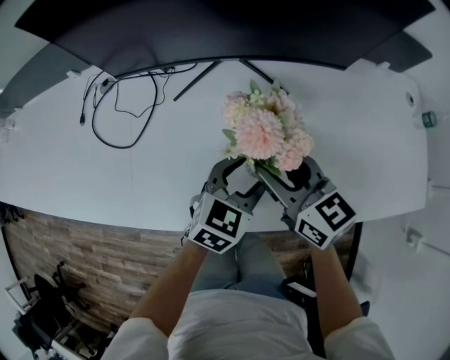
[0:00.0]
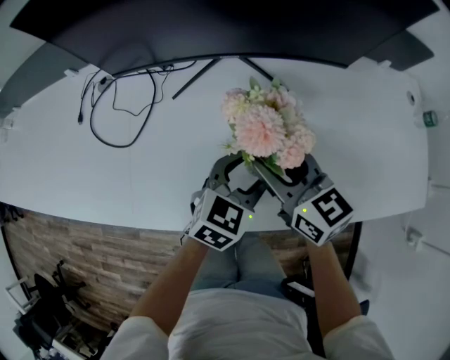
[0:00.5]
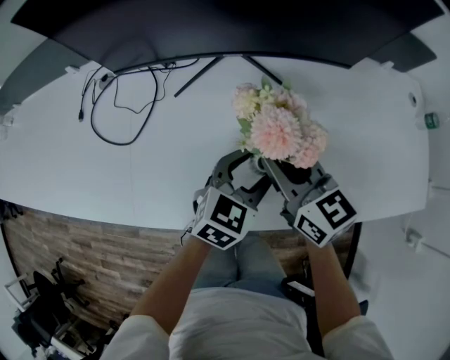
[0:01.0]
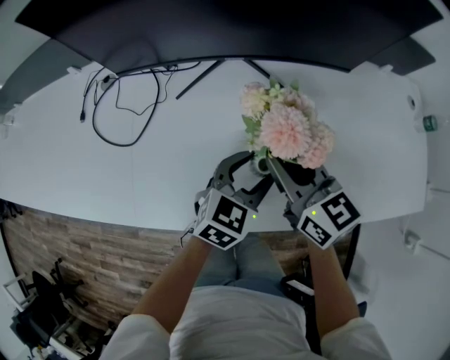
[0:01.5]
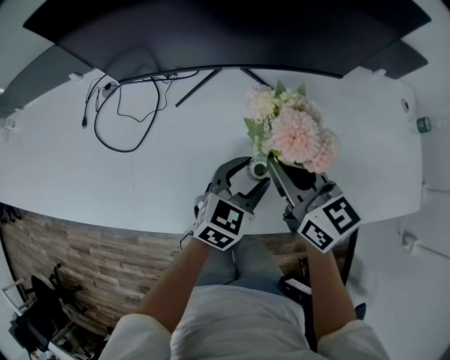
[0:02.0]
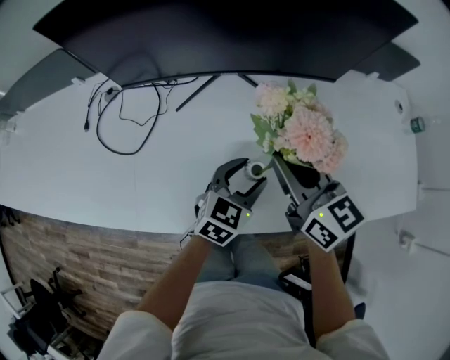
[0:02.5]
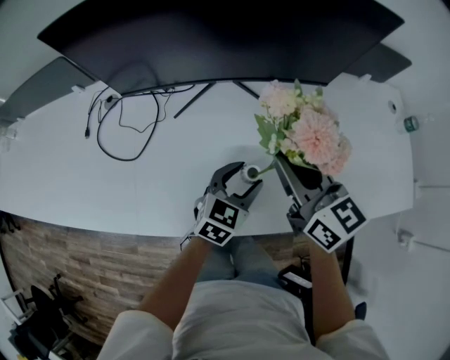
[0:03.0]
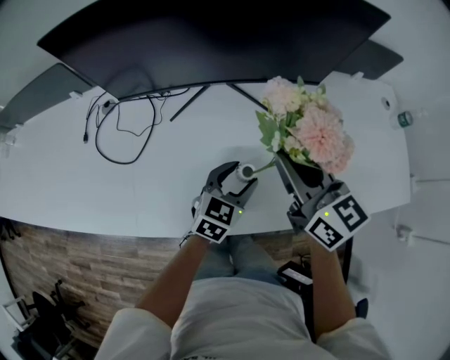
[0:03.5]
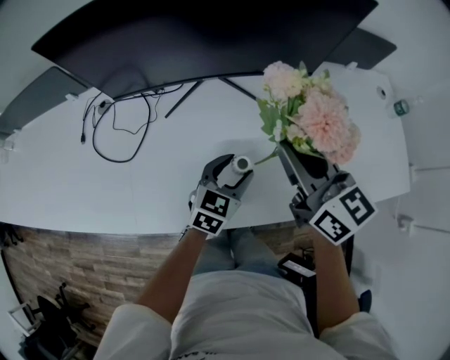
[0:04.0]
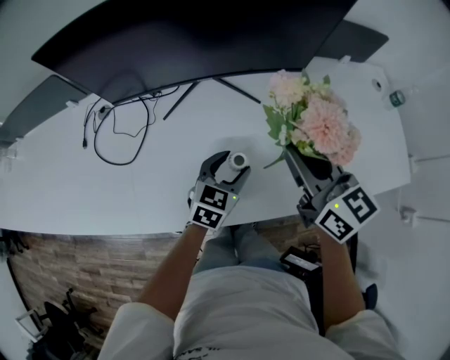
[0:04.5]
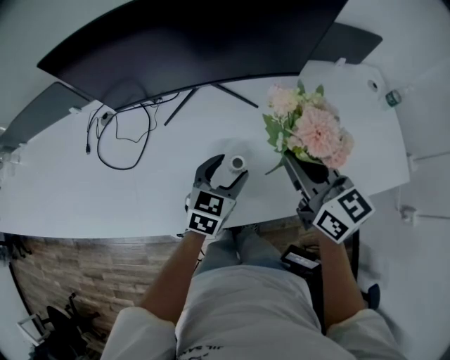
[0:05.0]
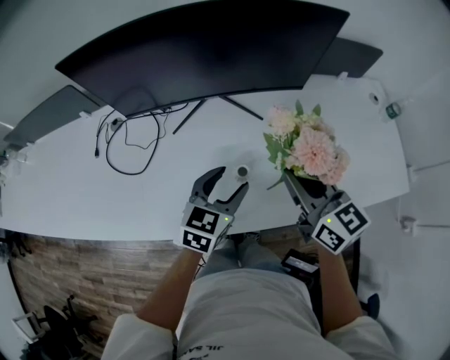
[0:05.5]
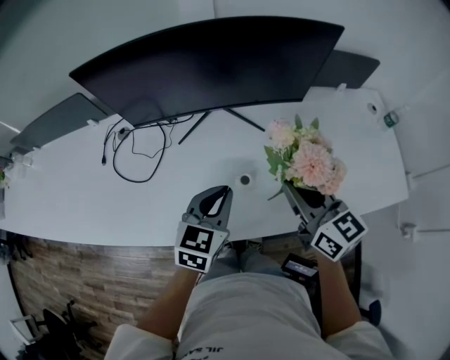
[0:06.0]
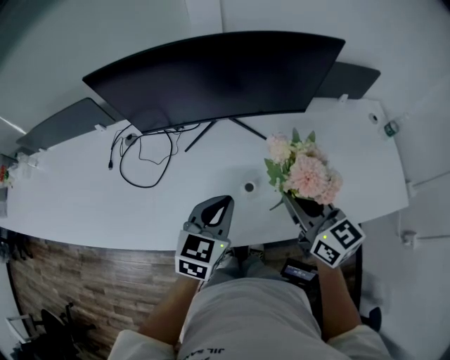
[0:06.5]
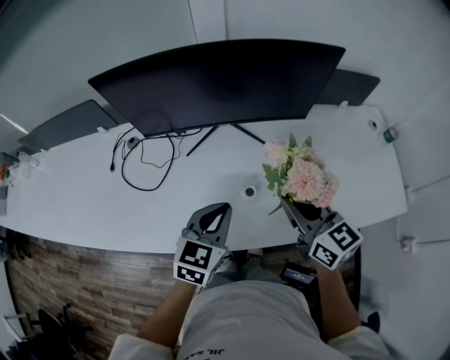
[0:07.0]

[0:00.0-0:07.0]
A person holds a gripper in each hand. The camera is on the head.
0:00.0 to 0:02.0: The right gripper closes its fingers.
0:02.0 to 0:03.5: The right gripper shifts some 5 cm upward.
0:03.5 to 0:05.0: The right gripper is displaced to the right by some 5 cm.
0:05.0 to 0:07.0: The left gripper is displaced upward, to the left and backward by about 15 cm, and closes up.

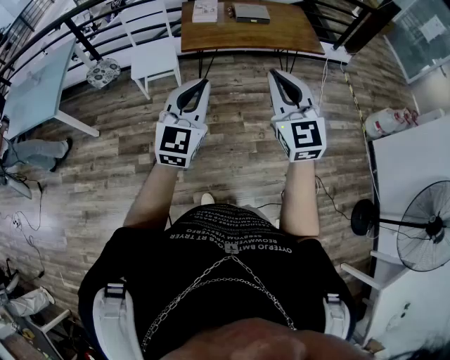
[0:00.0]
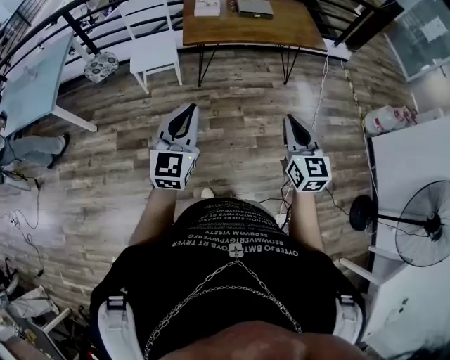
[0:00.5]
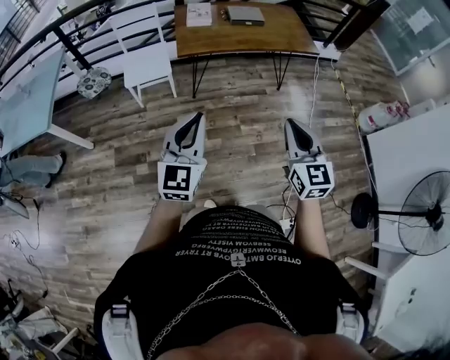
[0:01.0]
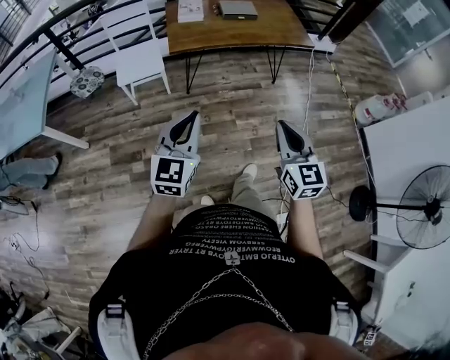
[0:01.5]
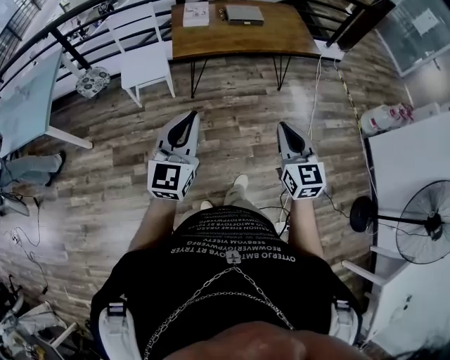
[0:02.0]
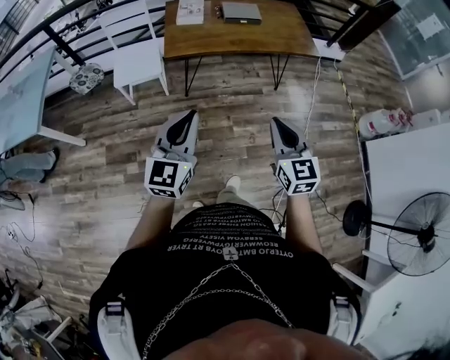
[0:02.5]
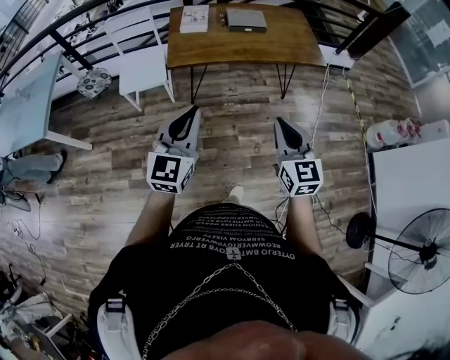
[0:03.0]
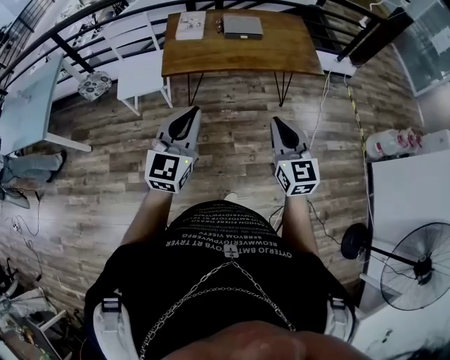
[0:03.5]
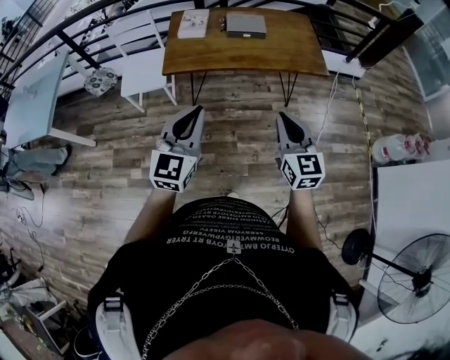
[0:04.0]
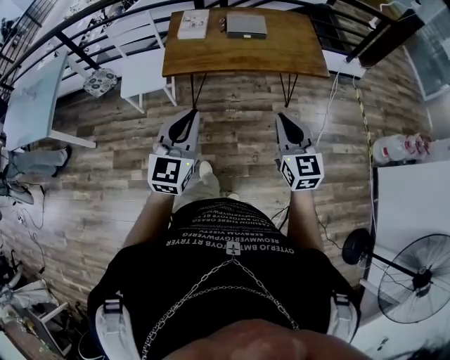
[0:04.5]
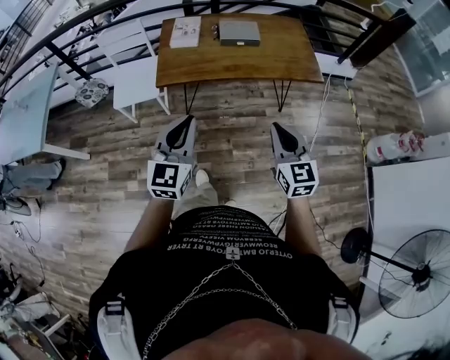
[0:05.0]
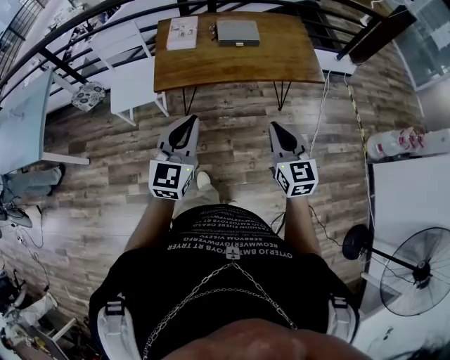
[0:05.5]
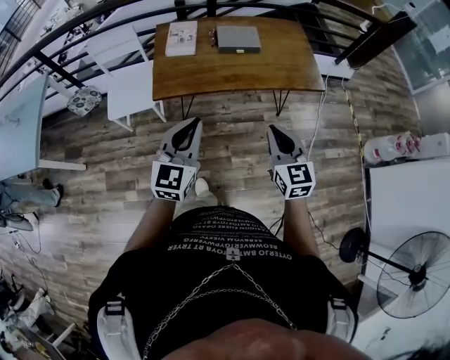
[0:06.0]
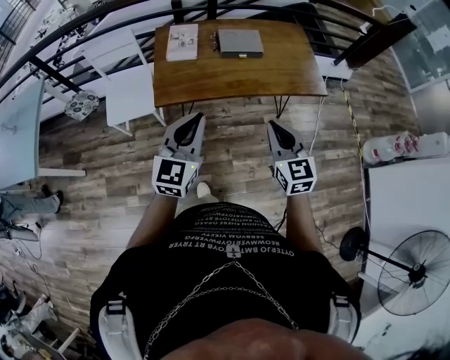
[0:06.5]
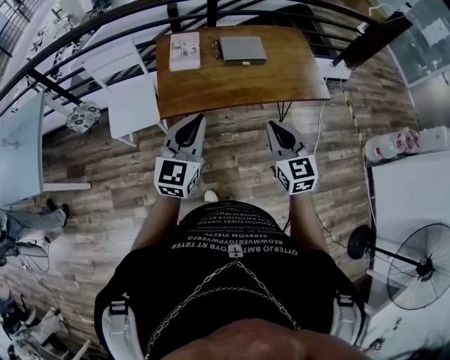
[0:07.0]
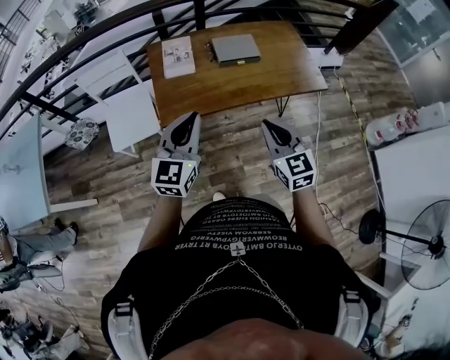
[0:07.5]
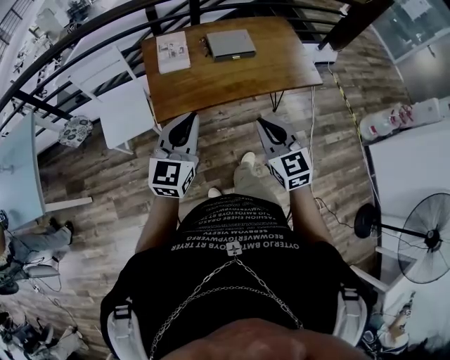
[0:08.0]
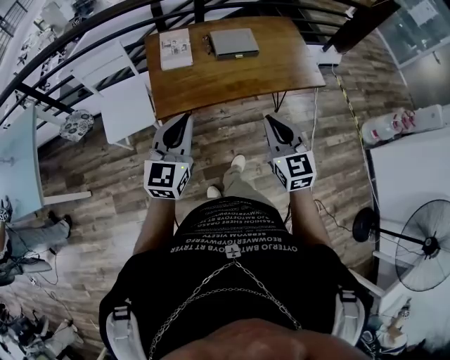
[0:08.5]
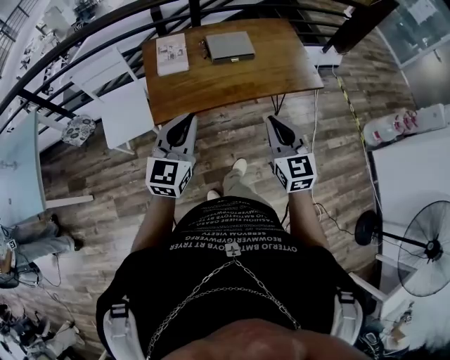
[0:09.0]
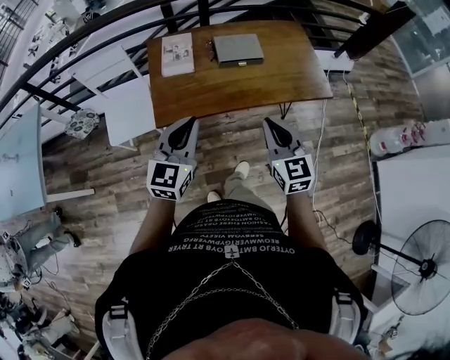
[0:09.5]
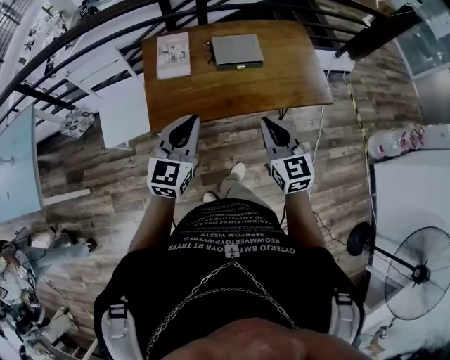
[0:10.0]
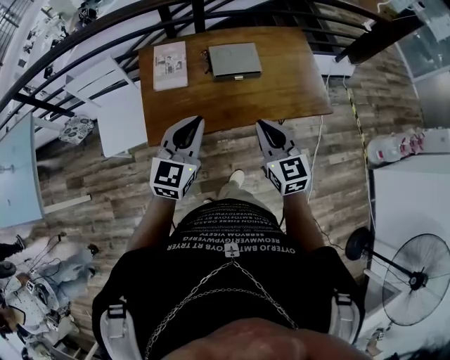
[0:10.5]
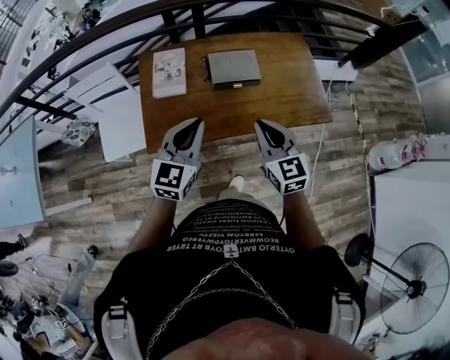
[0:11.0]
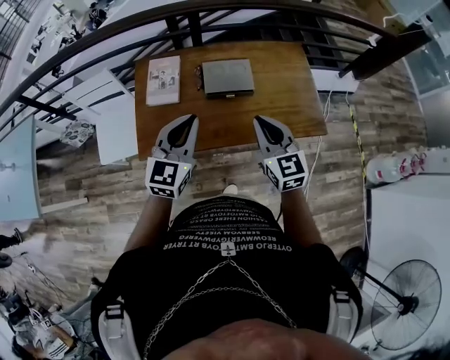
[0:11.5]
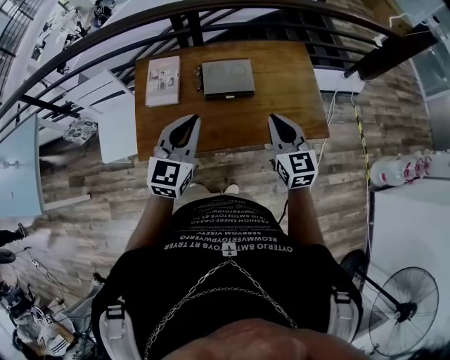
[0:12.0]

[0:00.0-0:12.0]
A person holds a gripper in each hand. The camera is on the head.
0:00.0 to 0:02.0: The left gripper ends up about 5 cm from where it was. Meanwhile the right gripper shifts approximately 15 cm downward, and swivels about 20 degrees.
0:02.0 to 0:04.0: Both grippers travel together forward and to the right, approximately 30 cm.
0:04.0 to 0:06.0: The left gripper shifts approximately 15 cm forward. The right gripper travels forward and to the left by about 15 cm.
0:06.0 to 0:08.0: Both grippers travel together to the left and forward, approximately 15 cm.
0:08.0 to 0:10.0: The right gripper travels forward and to the right by some 15 cm; the left gripper goes approximately 15 cm forward.
0:10.0 to 0:12.0: Both grippers move forward and to the right, roughly 20 cm.

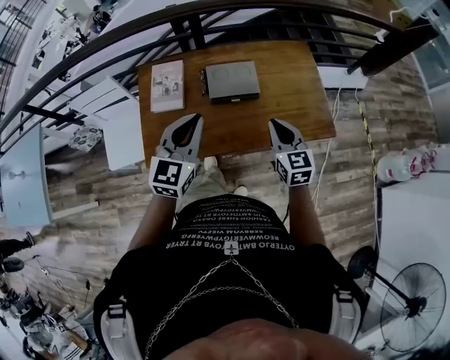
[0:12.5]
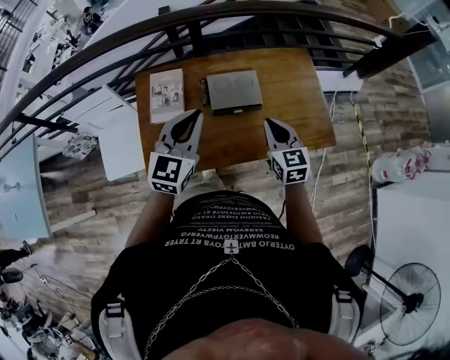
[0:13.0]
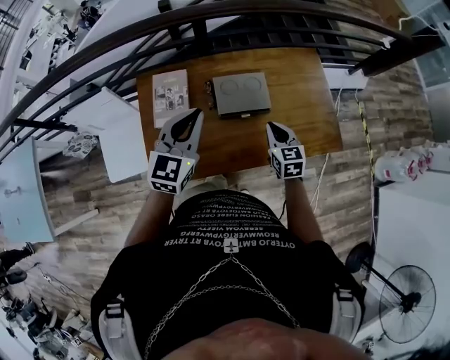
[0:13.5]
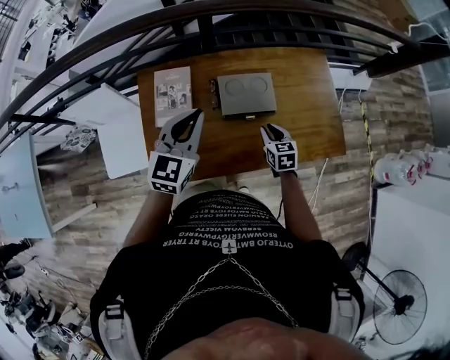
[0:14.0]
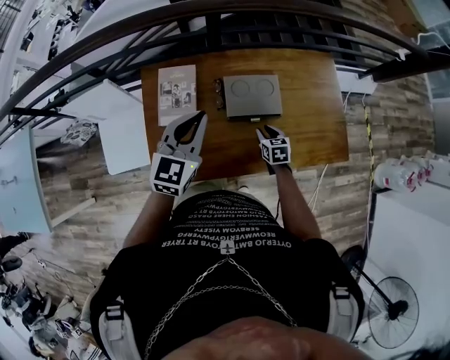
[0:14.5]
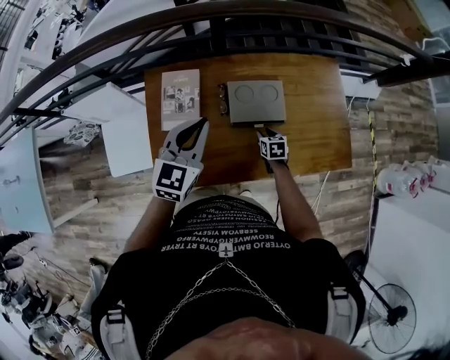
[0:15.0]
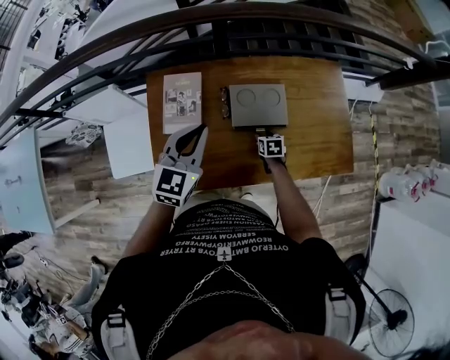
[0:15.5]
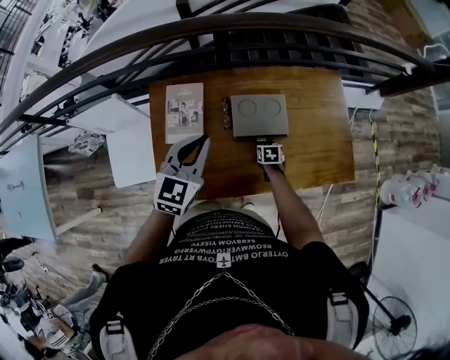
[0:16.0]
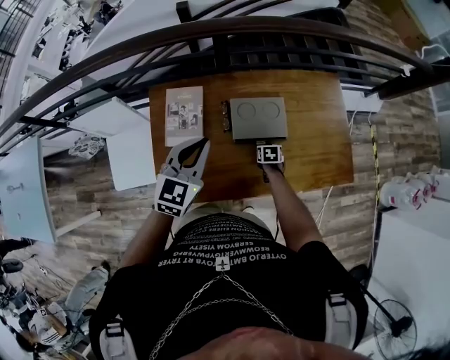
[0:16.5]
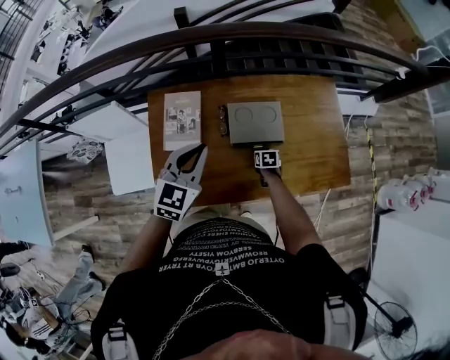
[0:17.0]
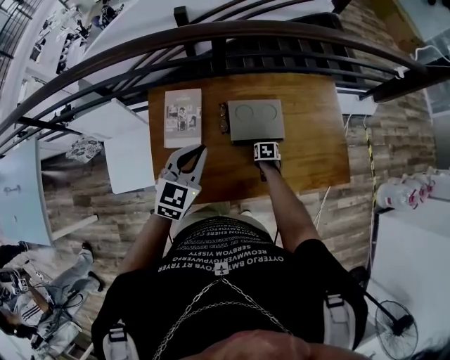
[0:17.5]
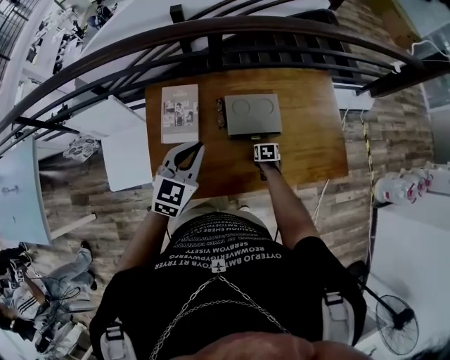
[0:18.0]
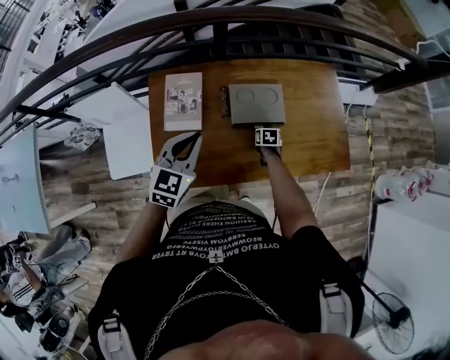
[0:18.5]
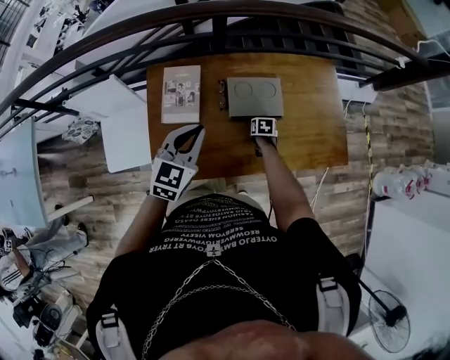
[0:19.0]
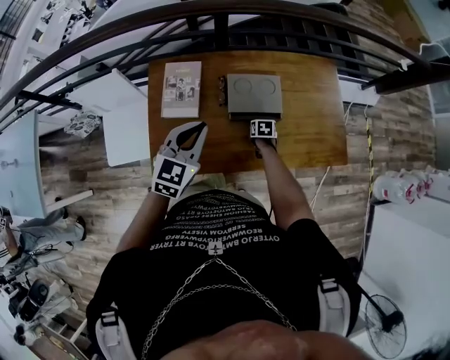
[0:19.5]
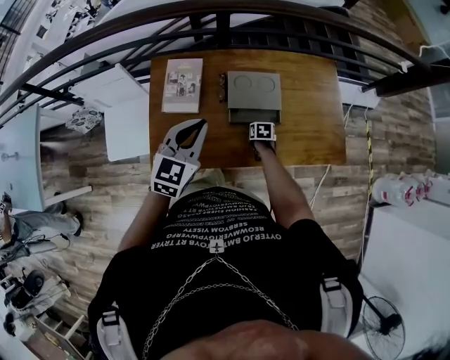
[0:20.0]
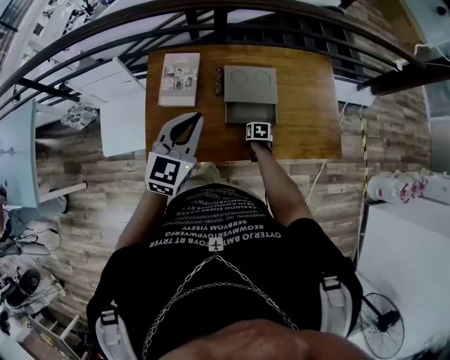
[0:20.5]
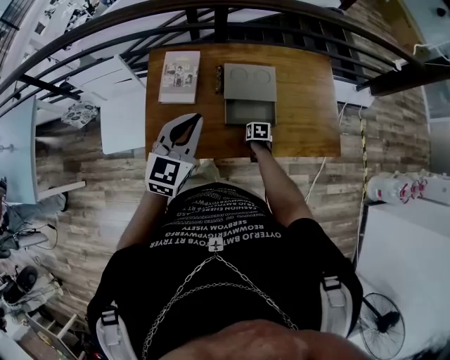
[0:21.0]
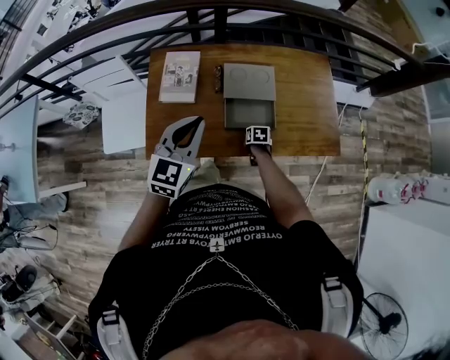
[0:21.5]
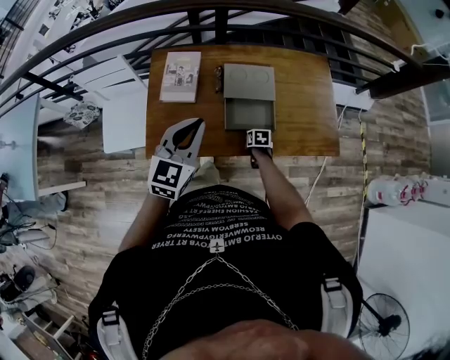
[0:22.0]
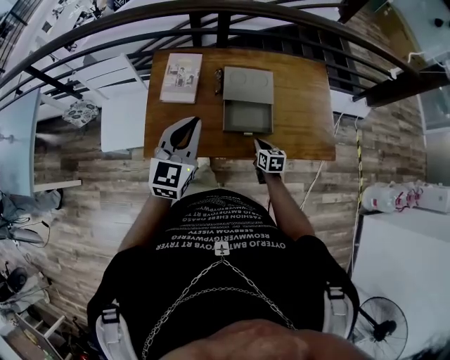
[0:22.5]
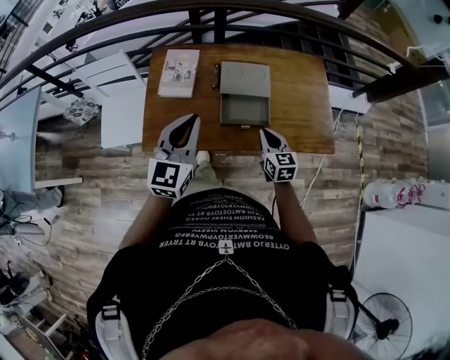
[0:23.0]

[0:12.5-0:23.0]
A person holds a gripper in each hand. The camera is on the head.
0:12.5 to 0:14.5: The left gripper shifts roughly 20 cm forward and to the left. The right gripper shifts some 30 cm downward and forward, changes its angle by approximately 30 degrees, and opens up.
0:14.5 to 0:16.5: The right gripper shifts approximately 10 cm downward.
0:16.5 to 0:19.0: The left gripper travels backward by about 5 cm.
0:19.0 to 0:21.0: The right gripper shifts approximately 10 cm backward, while the left gripper shifts about 10 cm backward and upward.
0:21.0 to 0:23.0: The left gripper shifts approximately 10 cm backward. The right gripper goes some 25 cm upward, tilts its fingers about 40 degrees upward, and closes its fingers.
